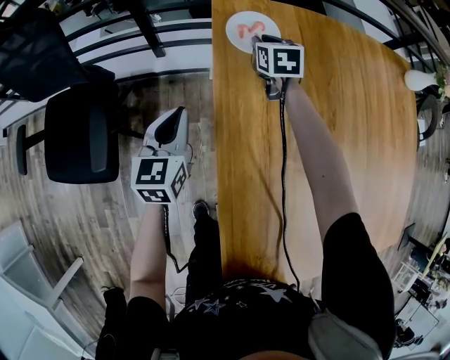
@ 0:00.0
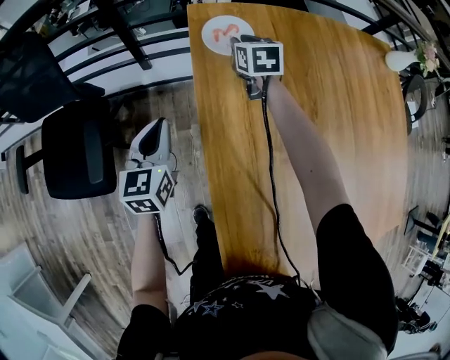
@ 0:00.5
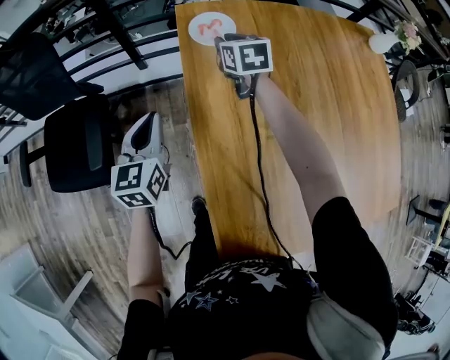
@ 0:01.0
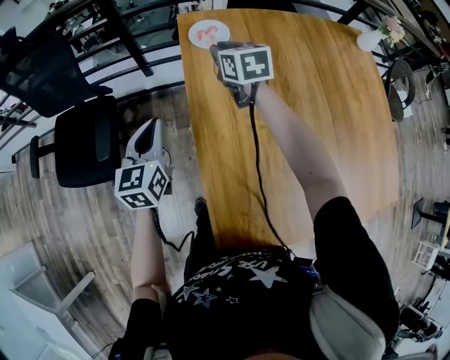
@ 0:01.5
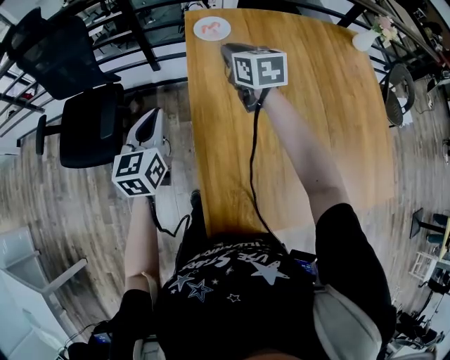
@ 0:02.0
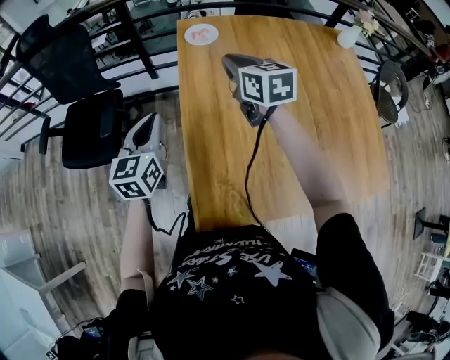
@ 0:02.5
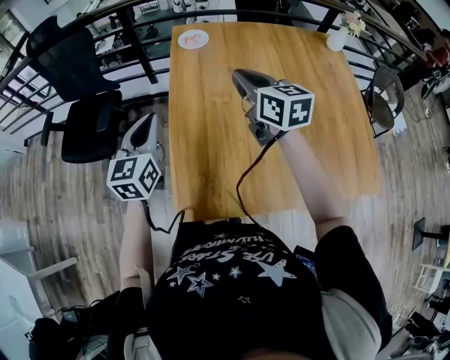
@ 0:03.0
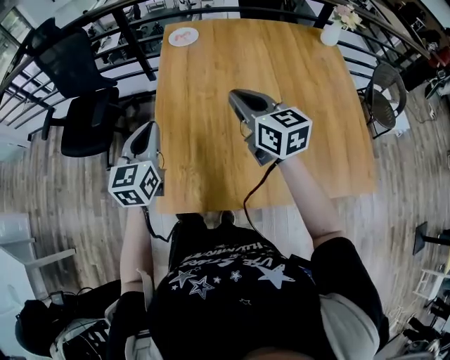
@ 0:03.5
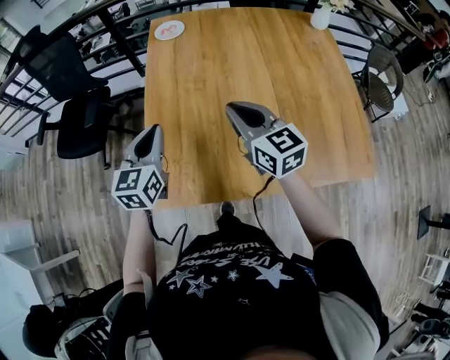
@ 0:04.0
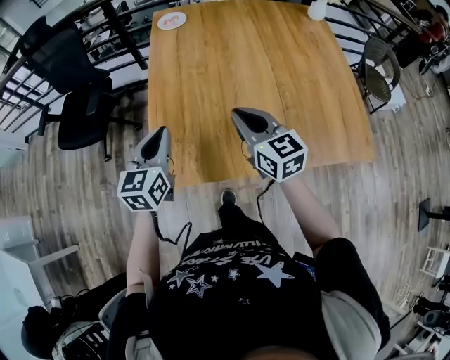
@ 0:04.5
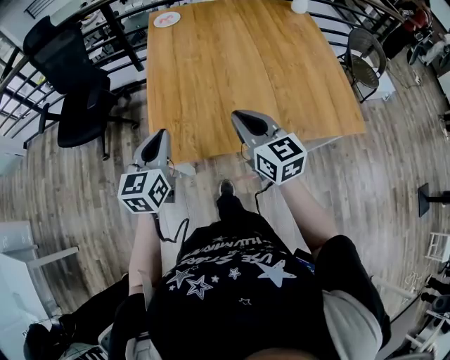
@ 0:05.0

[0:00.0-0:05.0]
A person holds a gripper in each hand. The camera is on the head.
0:00.0 to 0:02.5: The two grippers go roughly 40 cm backward and upward. The right gripper rotates approximately 20 degrees.
0:02.5 to 0:05.0: The two grippers go some 40 cm backward.

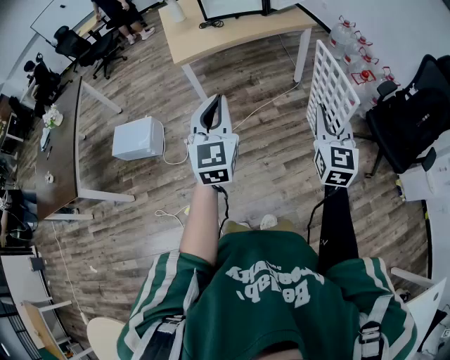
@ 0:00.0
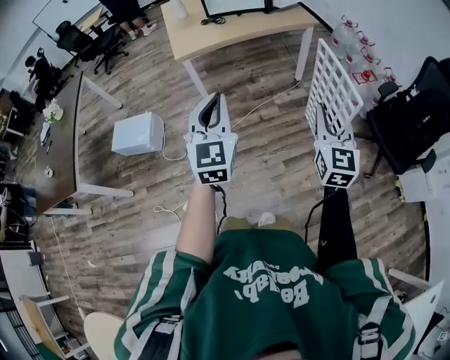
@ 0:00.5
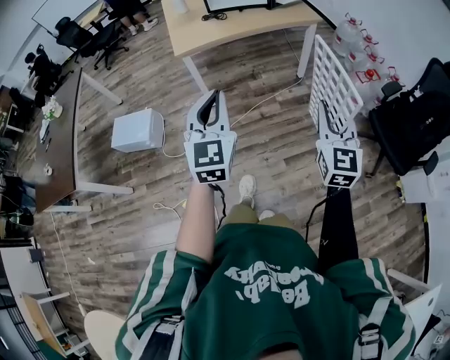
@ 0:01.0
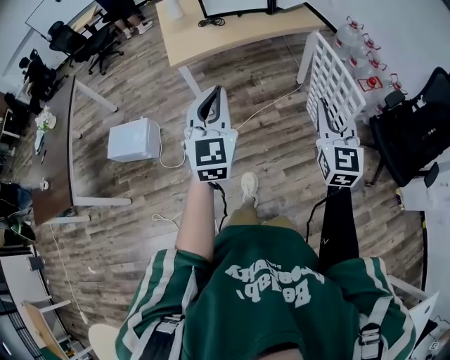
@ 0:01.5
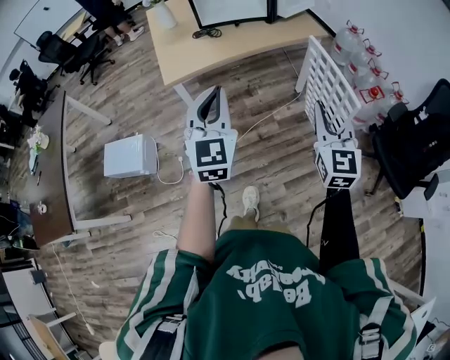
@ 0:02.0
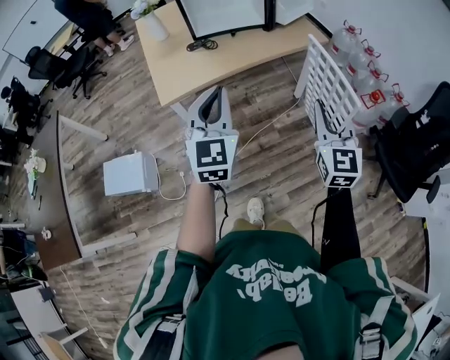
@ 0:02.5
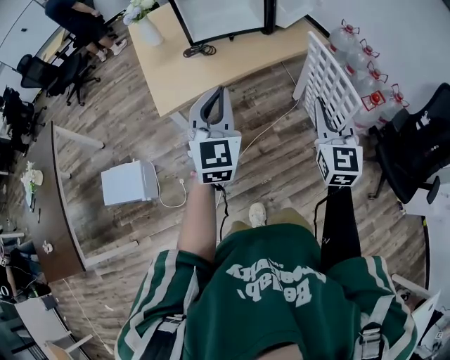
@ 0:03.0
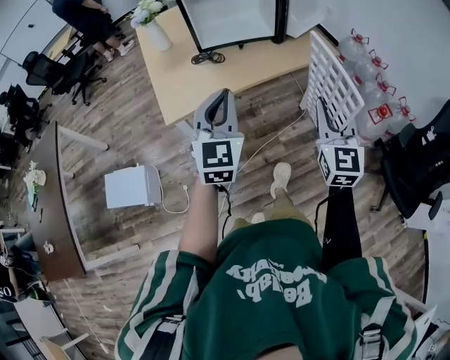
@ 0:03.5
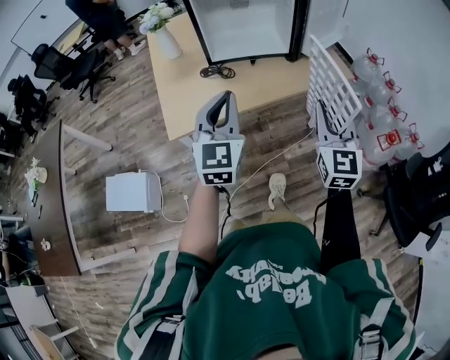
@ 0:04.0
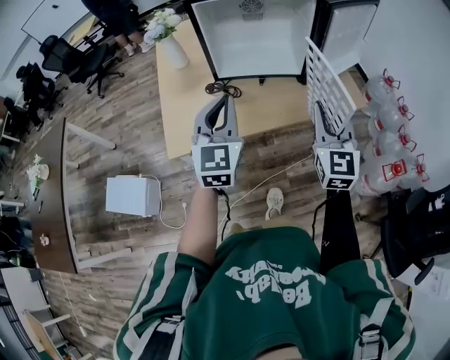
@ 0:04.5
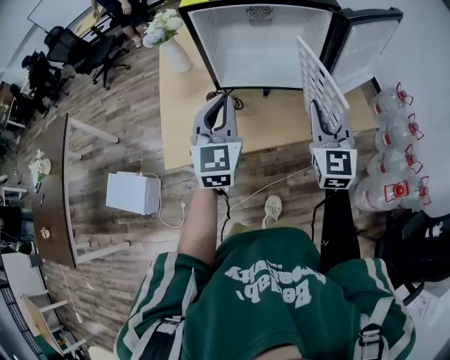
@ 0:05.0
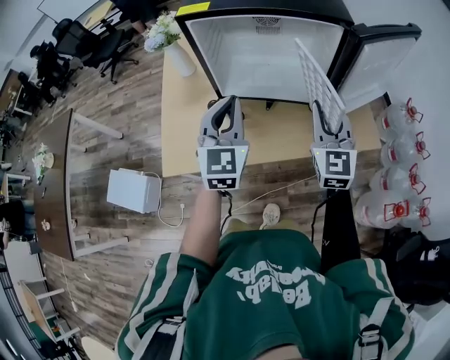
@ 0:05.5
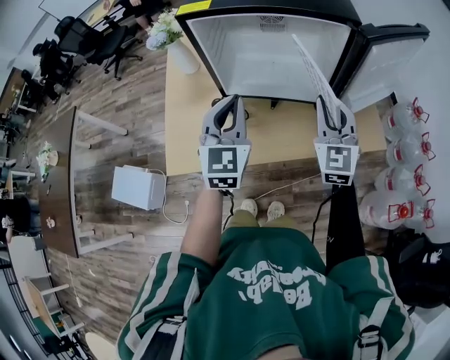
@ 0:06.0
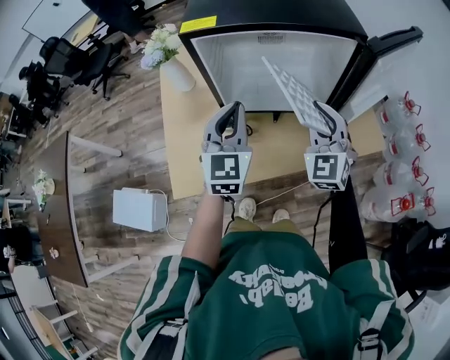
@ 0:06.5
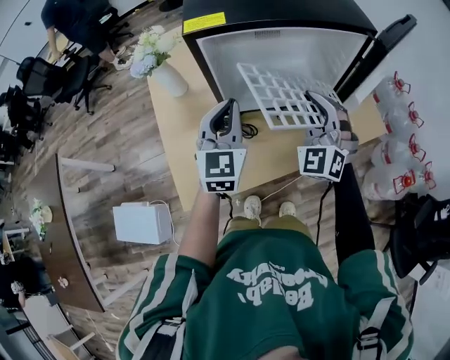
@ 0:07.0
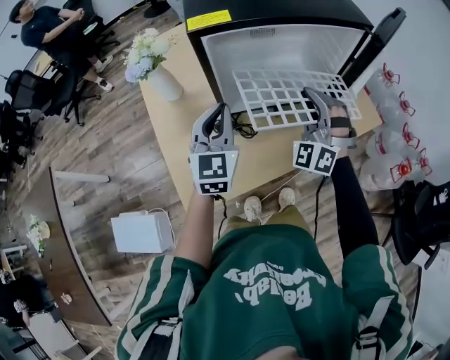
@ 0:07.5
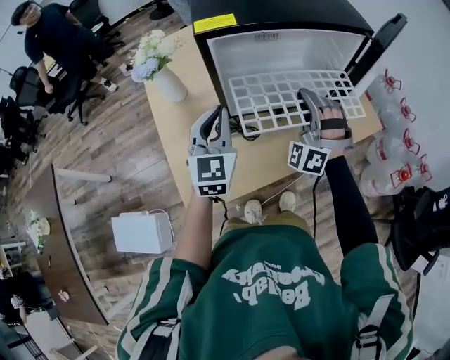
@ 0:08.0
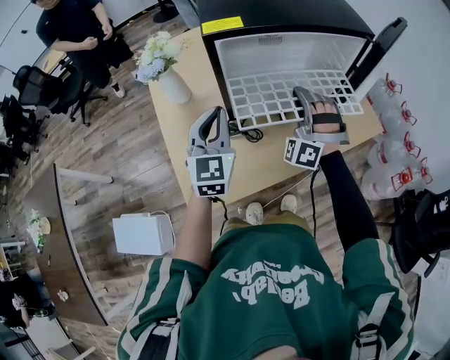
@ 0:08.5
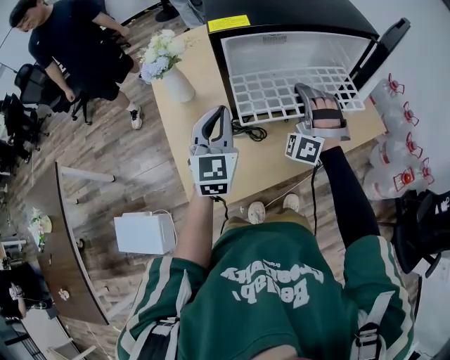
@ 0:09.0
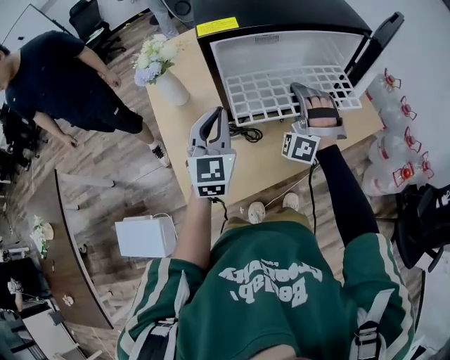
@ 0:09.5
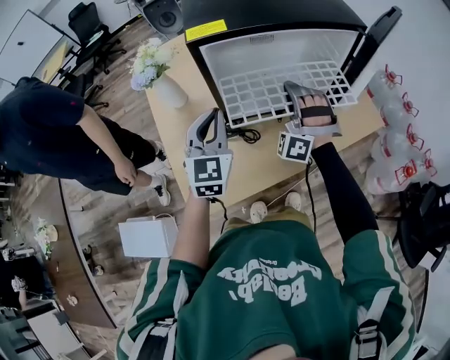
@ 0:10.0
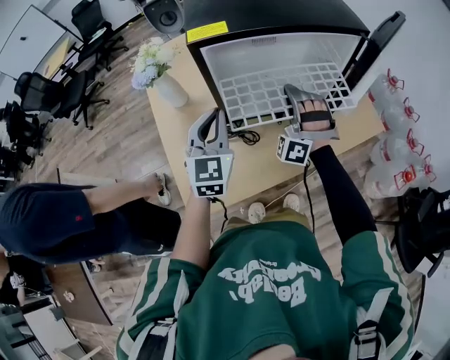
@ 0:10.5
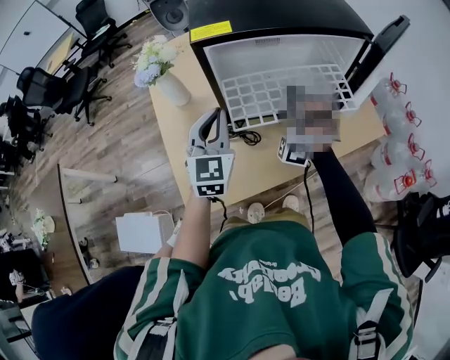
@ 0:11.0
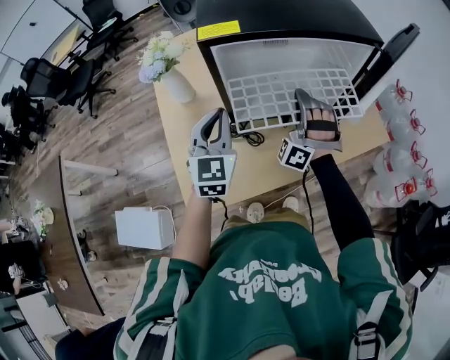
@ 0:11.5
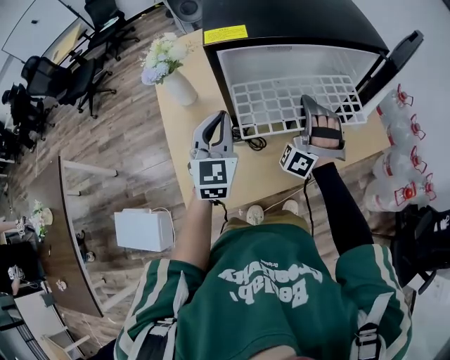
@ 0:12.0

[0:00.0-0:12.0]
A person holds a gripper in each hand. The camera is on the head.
0:00.0 to 0:02.0: The two grippers go roughly 25 cm forward.
0:02.0 to 0:04.0: Both grippers move forward, roughly 30 cm.
0:04.0 to 0:06.0: The two grippers go about 30 cm forward.
0:06.0 to 0:08.0: The right gripper goes roughly 15 cm to the left, and rotates around the line of its fingers by some 60 degrees, counterclockwise from behind. The left gripper heads to the left and forward, covering some 15 cm.
0:08.0 to 0:12.0: The grippers move only a little.

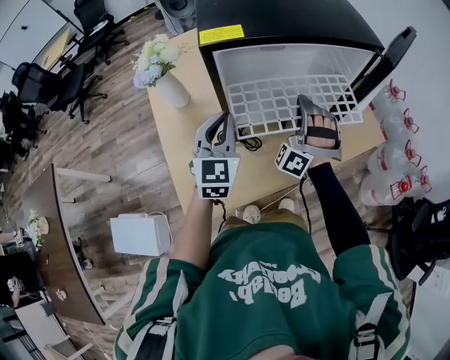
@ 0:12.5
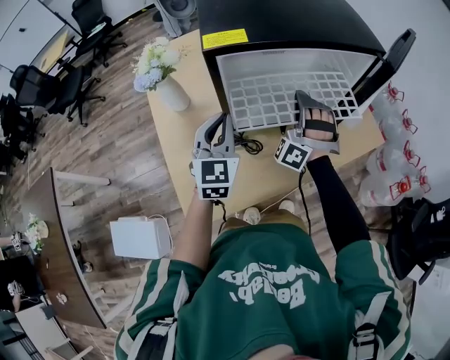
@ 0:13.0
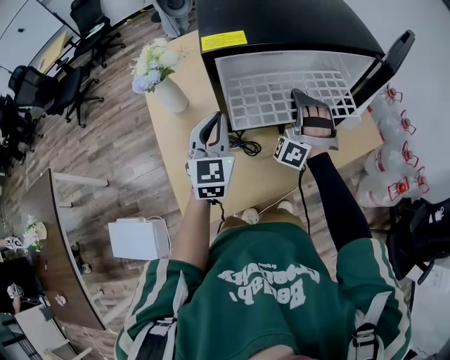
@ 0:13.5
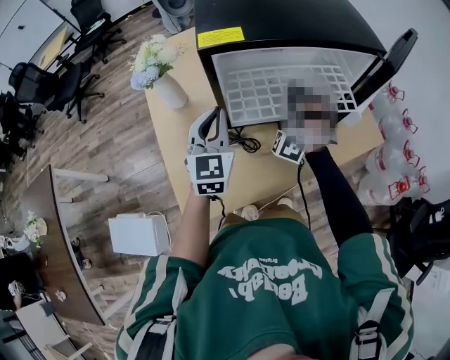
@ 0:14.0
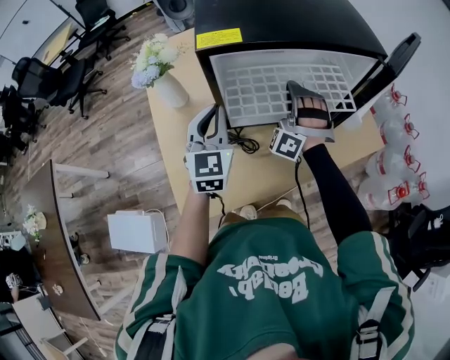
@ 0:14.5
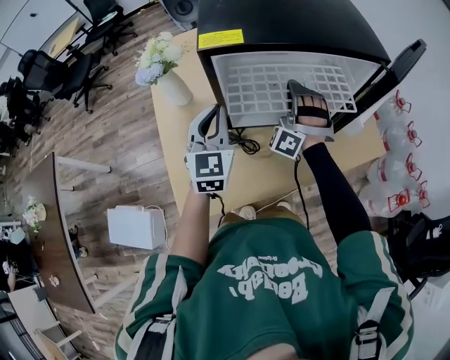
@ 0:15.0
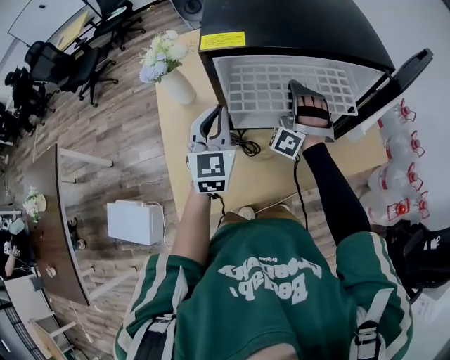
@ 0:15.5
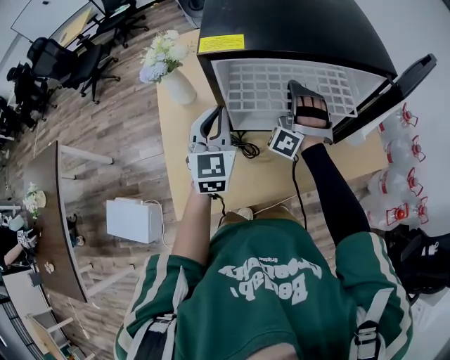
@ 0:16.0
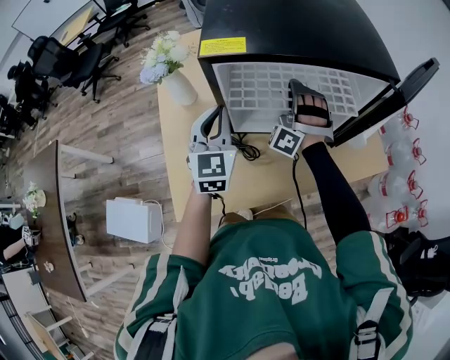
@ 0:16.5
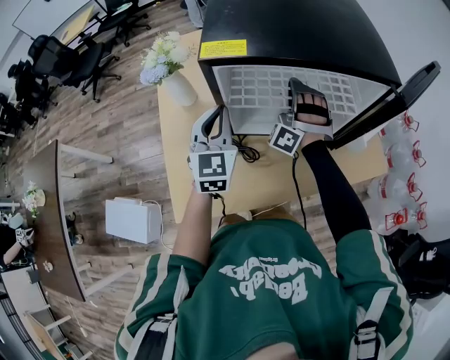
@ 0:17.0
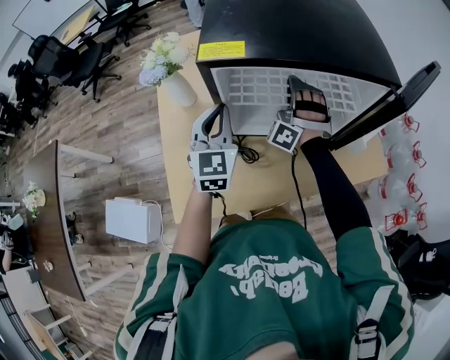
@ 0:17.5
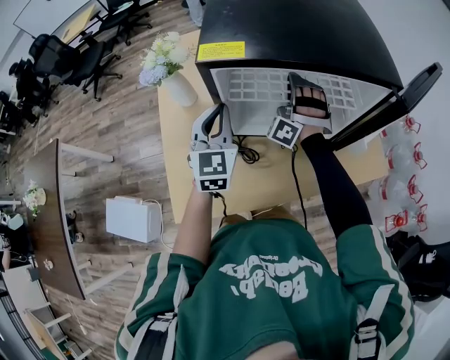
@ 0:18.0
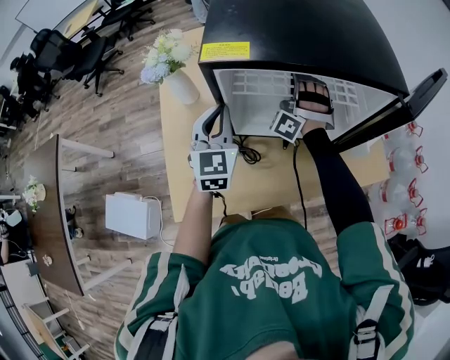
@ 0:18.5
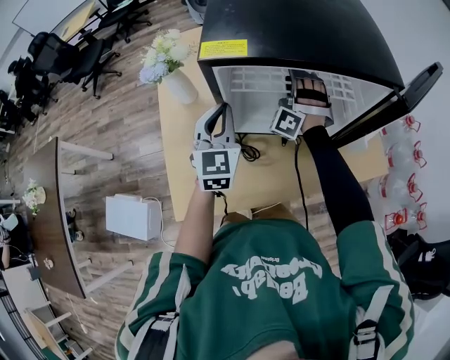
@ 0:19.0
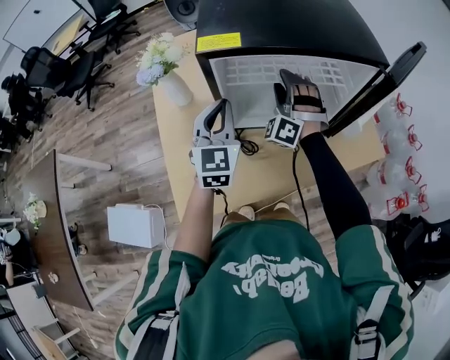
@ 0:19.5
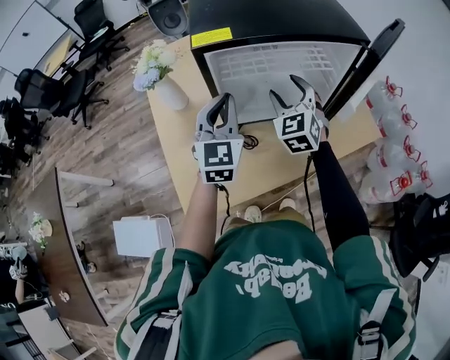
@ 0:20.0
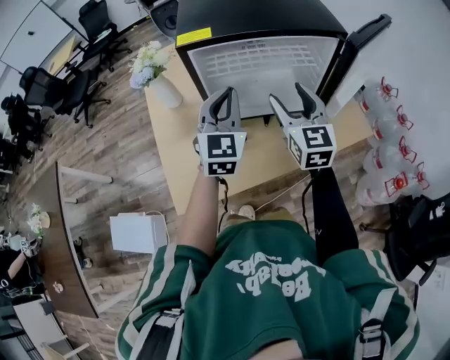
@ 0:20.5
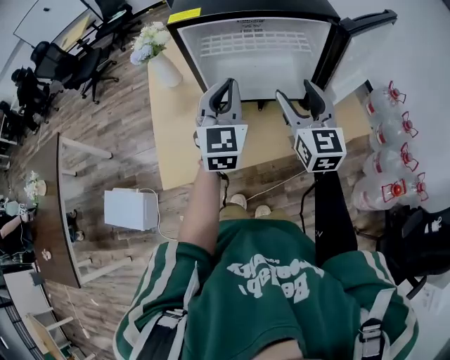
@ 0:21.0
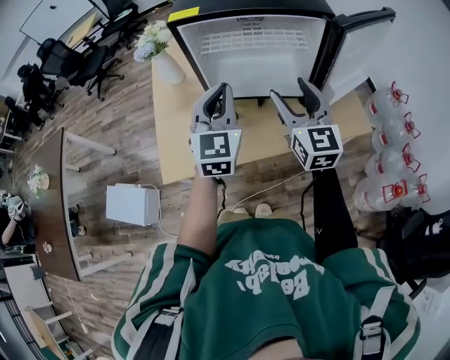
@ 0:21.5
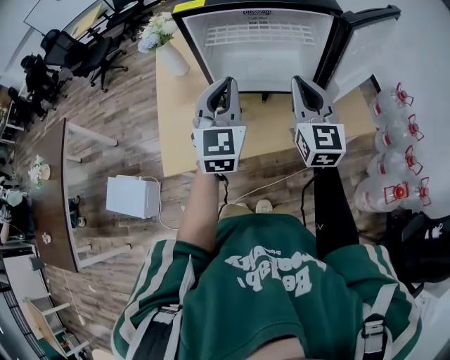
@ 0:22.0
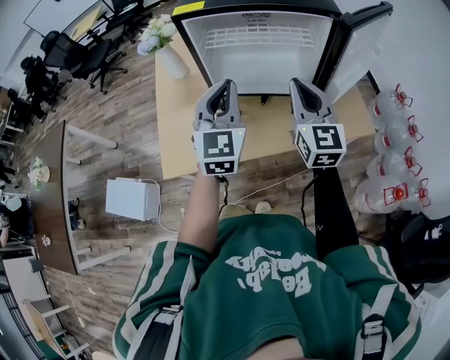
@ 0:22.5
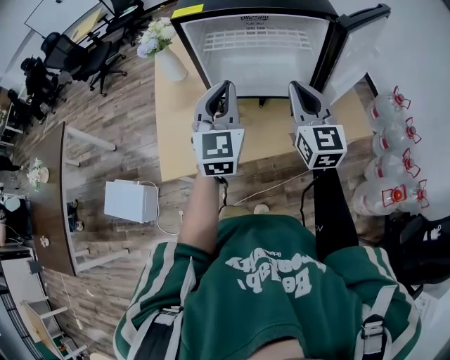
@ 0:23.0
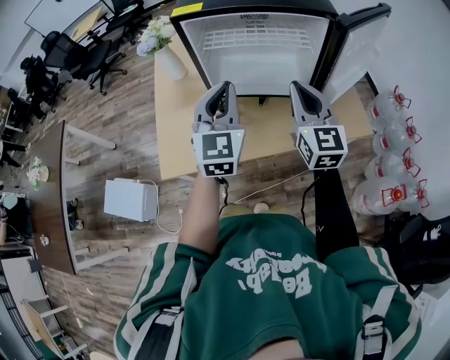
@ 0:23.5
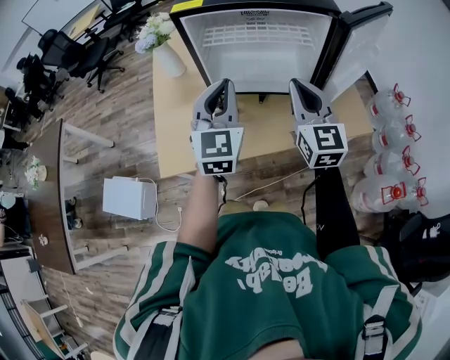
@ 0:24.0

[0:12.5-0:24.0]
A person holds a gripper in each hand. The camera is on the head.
0:12.5 to 0:14.5: The right gripper goes about 5 cm forward.
0:14.5 to 0:16.5: The grippers stay close to where they were, moving slightly.
0:16.5 to 0:18.5: The right gripper is displaced forward by approximately 5 cm.
0:18.5 to 0:20.0: The left gripper changes place by some 10 cm; the right gripper heads backward, covering some 15 cm, rotates around the line of its fingers by some 50 degrees, clockwise from behind, and opens its fingers.
0:20.0 to 0:22.0: The left gripper shifts some 15 cm backward and to the right. The right gripper heads backward, to the right and upward, covering about 20 cm, rotates about 40 degrees, and closes.
0:22.0 to 0:24.0: The two grippers keep their place.
